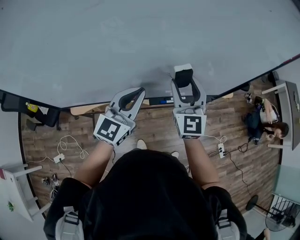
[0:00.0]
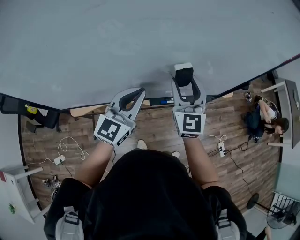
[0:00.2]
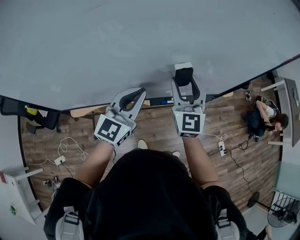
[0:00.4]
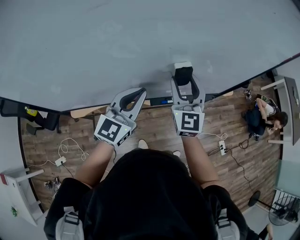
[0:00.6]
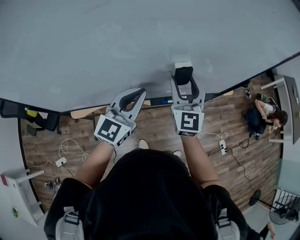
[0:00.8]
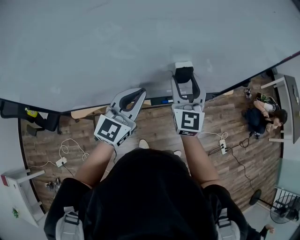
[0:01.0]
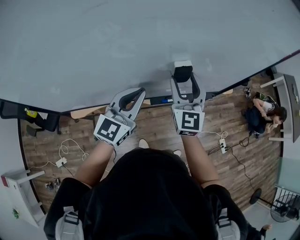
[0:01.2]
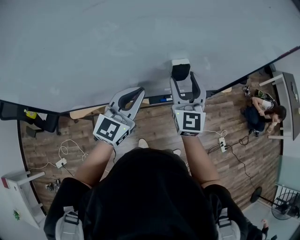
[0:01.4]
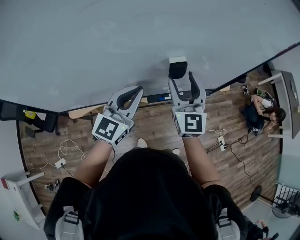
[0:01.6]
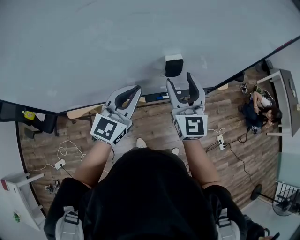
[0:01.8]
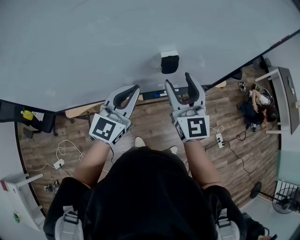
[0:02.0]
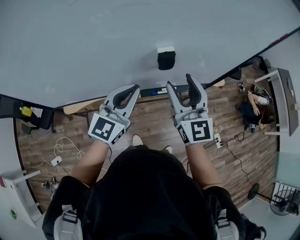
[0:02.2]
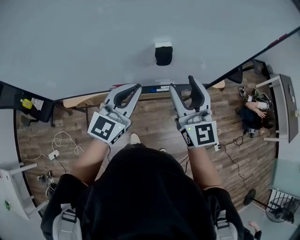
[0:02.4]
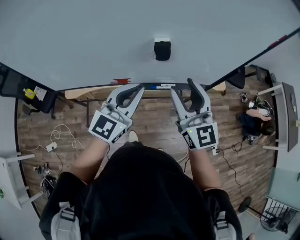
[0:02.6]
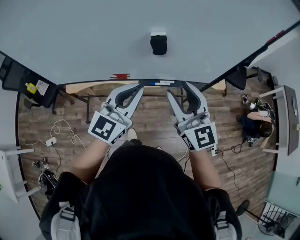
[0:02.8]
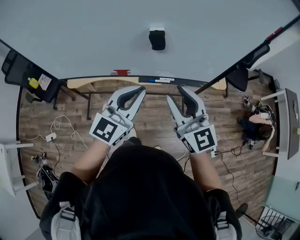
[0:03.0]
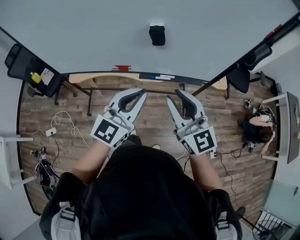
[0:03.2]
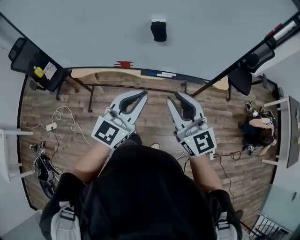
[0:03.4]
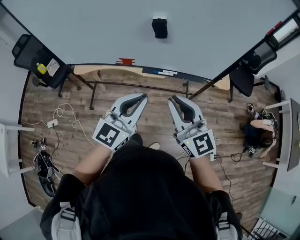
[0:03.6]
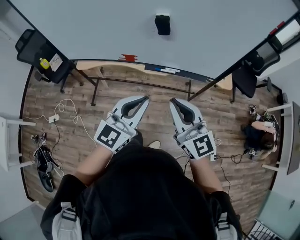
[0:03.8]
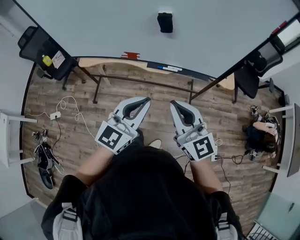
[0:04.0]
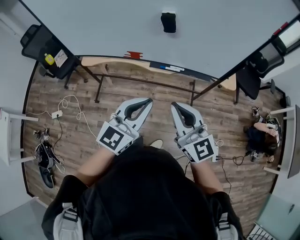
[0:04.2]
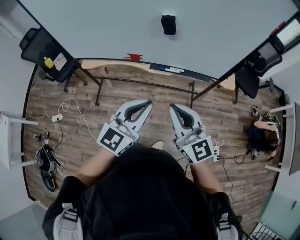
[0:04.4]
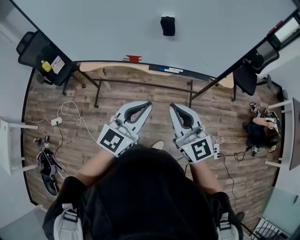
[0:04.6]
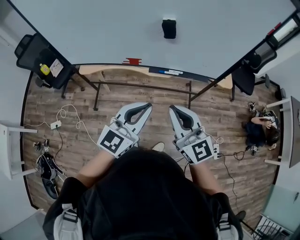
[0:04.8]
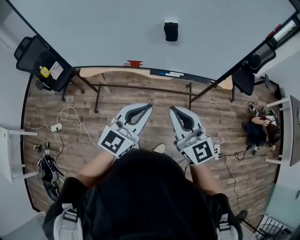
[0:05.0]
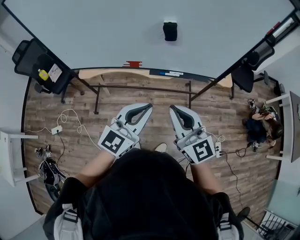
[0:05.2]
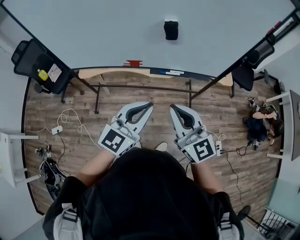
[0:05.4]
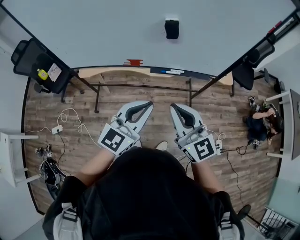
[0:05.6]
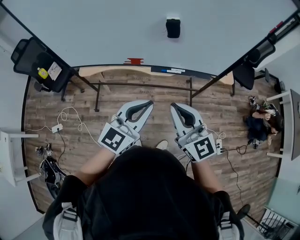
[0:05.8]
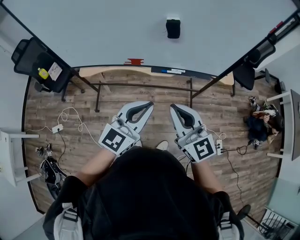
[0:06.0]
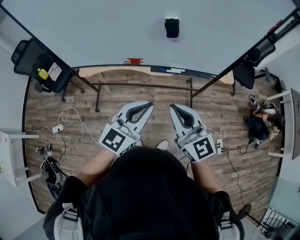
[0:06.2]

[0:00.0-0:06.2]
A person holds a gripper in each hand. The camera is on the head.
0:00.0 to 0:01.6: The grippers stay close to where they were, moving slightly.
0:01.6 to 0:03.2: Both grippers move backward and to the right, roughly 25 cm. The right gripper rotates roughly 30 degrees, and closes up.
0:03.2 to 0:04.6: The grippers both shift backward by about 10 cm. The right gripper closes up.
0:04.6 to 0:06.2: The grippers make only small movements.

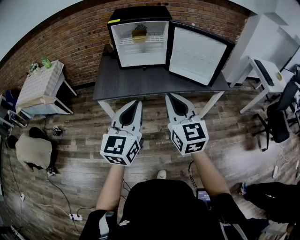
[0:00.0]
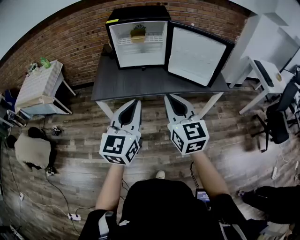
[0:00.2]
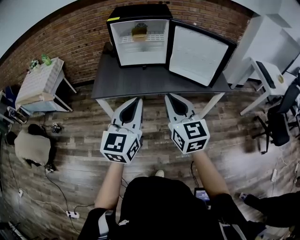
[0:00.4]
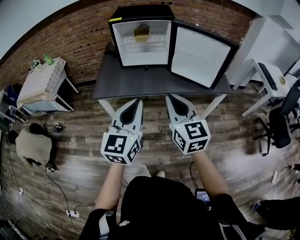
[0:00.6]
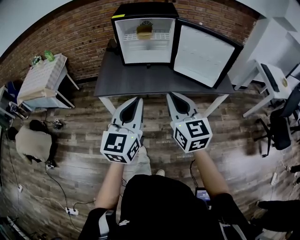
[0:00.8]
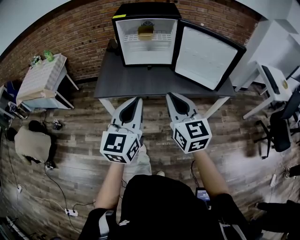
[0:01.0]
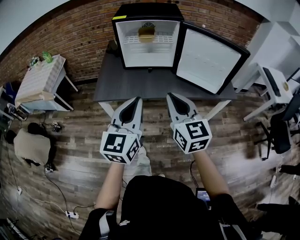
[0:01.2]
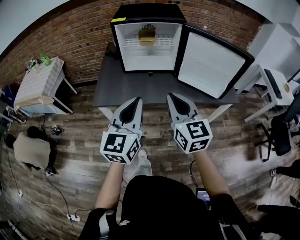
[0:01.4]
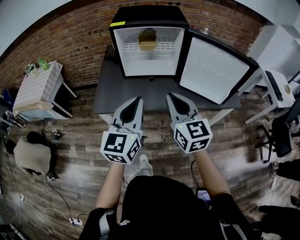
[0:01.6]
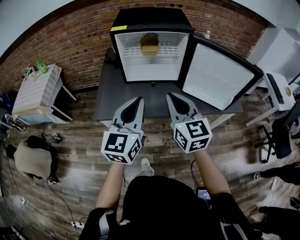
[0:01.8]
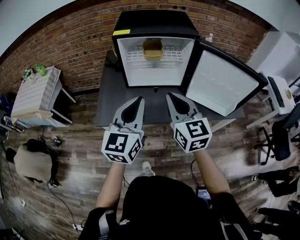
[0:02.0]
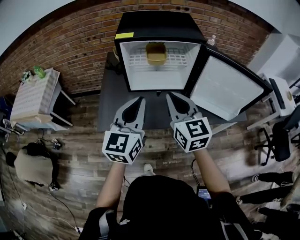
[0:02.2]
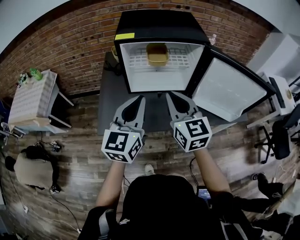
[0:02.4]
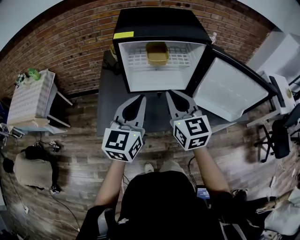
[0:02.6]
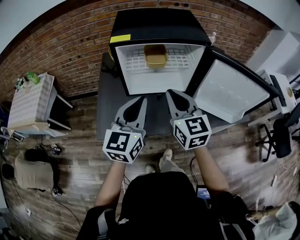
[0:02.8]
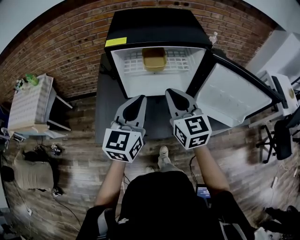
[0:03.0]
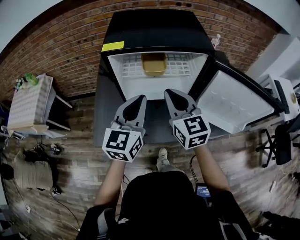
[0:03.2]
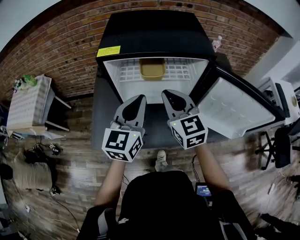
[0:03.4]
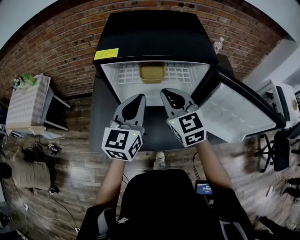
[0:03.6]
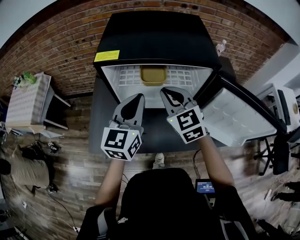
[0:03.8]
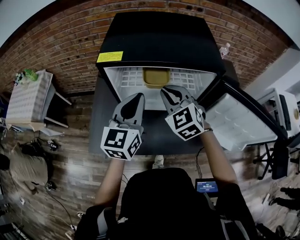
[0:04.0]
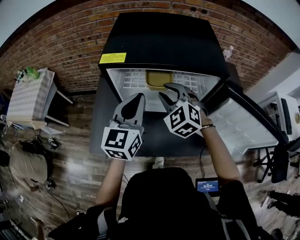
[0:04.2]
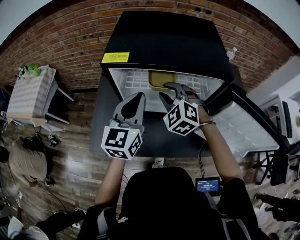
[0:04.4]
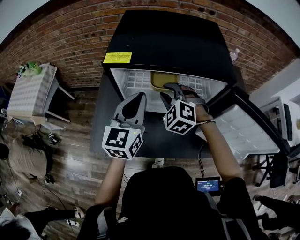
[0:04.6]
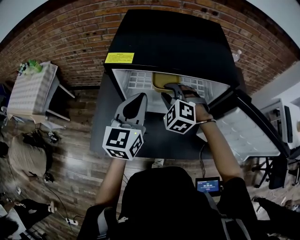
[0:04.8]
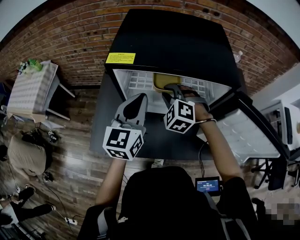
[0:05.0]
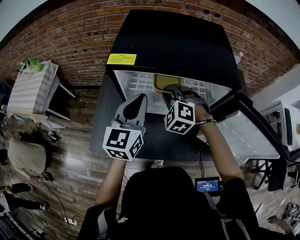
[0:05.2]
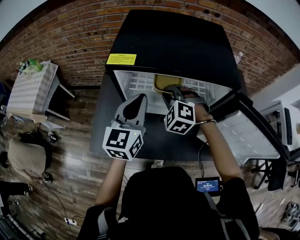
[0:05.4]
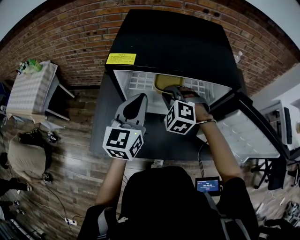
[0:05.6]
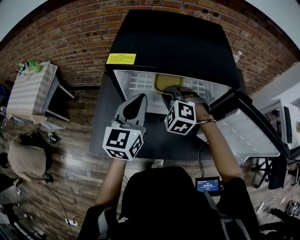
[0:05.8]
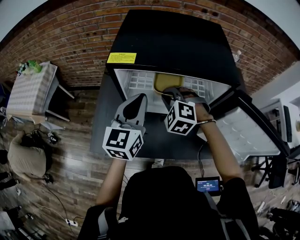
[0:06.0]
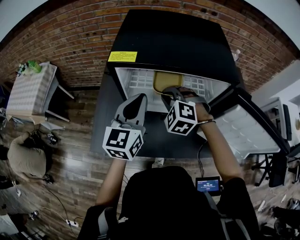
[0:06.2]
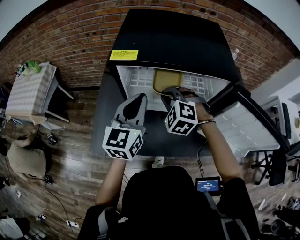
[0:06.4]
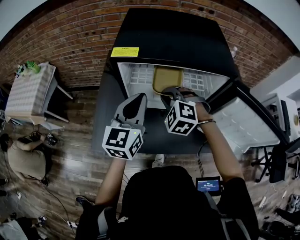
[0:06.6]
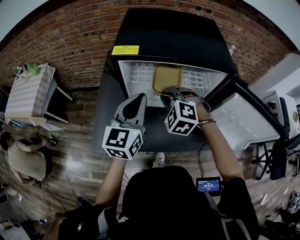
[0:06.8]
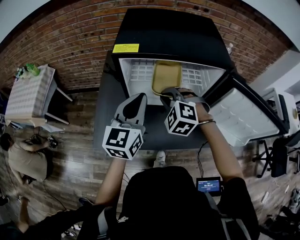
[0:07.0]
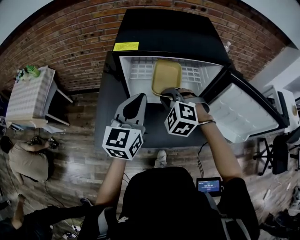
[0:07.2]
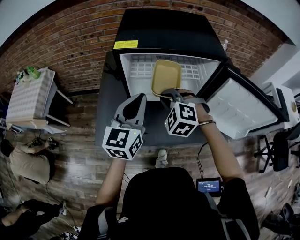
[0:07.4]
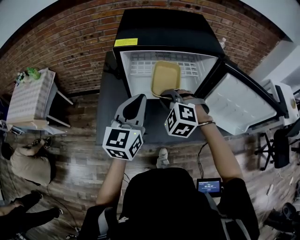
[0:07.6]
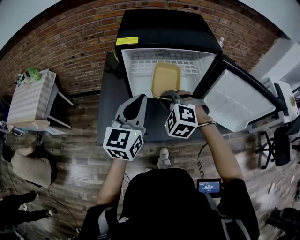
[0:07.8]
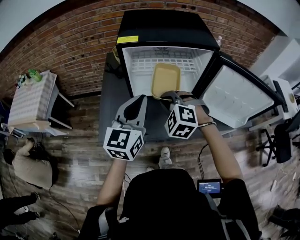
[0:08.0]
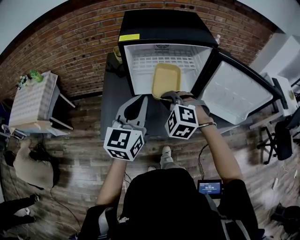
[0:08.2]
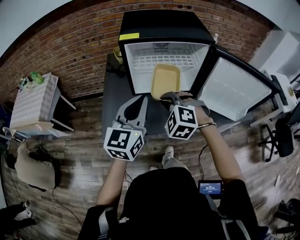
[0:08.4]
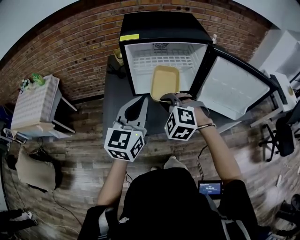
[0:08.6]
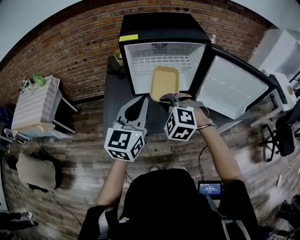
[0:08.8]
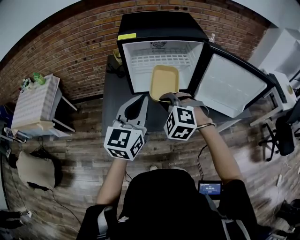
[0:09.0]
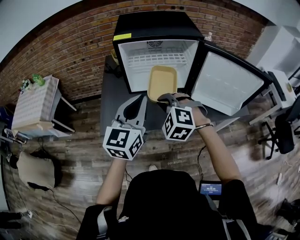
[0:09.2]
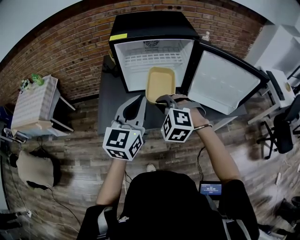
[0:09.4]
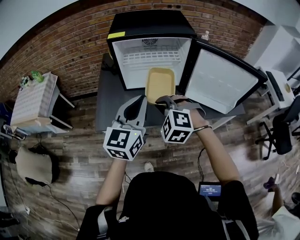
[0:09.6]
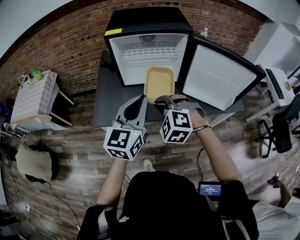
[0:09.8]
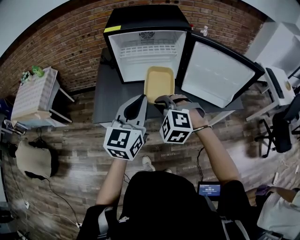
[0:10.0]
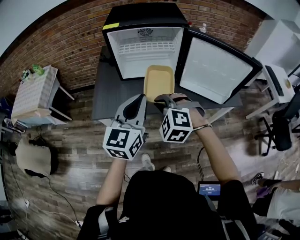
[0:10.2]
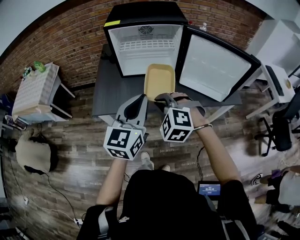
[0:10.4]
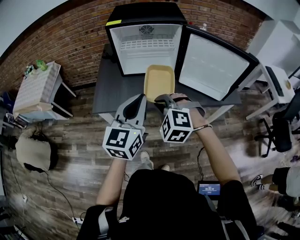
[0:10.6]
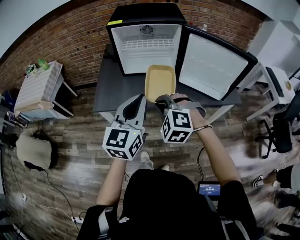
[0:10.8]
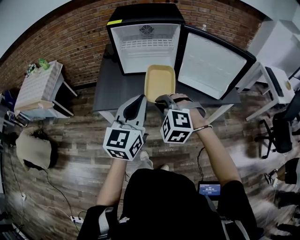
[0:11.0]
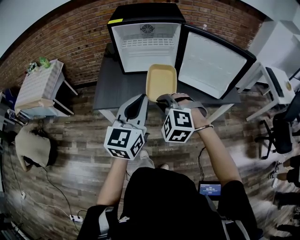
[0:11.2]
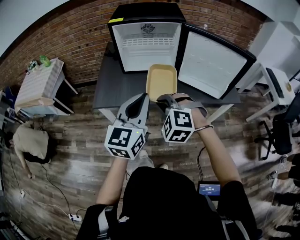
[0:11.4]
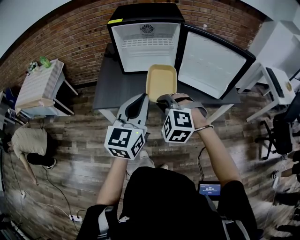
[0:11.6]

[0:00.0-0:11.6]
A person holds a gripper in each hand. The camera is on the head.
0:00.0 to 0:01.4: Both grippers move forward, approximately 15 cm.
0:01.4 to 0:02.8: The grippers both shift forward by some 25 cm.
0:02.8 to 0:04.4: The right gripper moves forward and downward, some 20 cm, rolls counterclockwise, seen from behind, by roughly 50 degrees, and opens. Meanwhile the left gripper goes approximately 20 cm forward.
0:04.4 to 0:05.8: The grippers move only a little.
0:05.8 to 0:07.2: The two grippers go roughly 10 cm backward.
0:07.2 to 0:08.8: Both grippers travel together backward, about 15 cm.
0:08.8 to 0:10.2: Both grippers move backward and to the right, about 15 cm.
0:10.2 to 0:11.6: Both grippers move backward, about 10 cm.

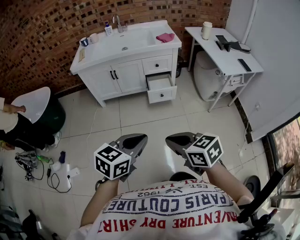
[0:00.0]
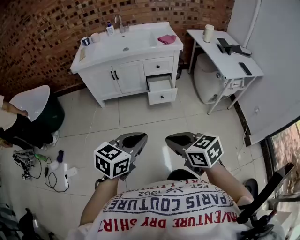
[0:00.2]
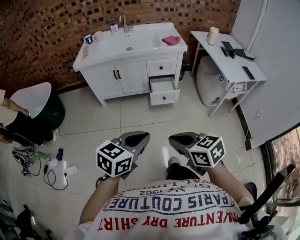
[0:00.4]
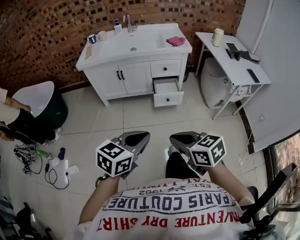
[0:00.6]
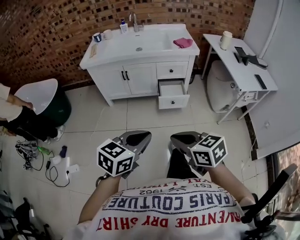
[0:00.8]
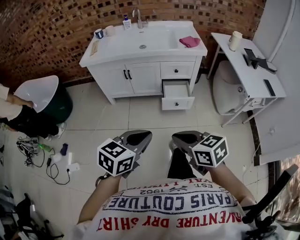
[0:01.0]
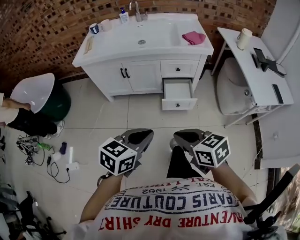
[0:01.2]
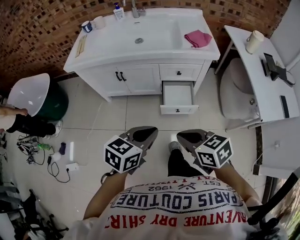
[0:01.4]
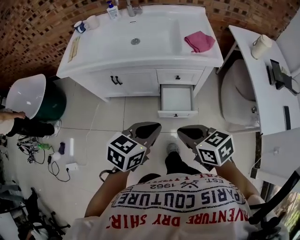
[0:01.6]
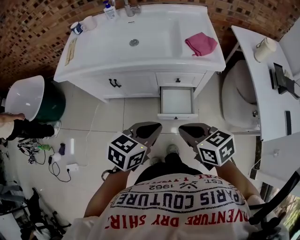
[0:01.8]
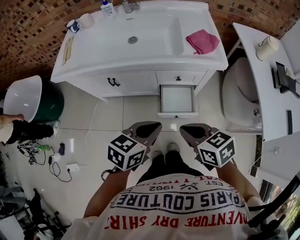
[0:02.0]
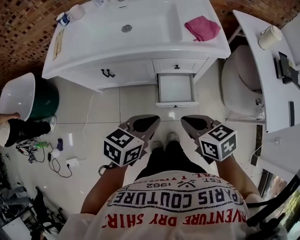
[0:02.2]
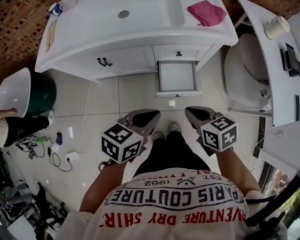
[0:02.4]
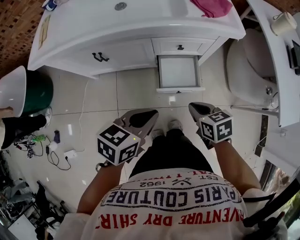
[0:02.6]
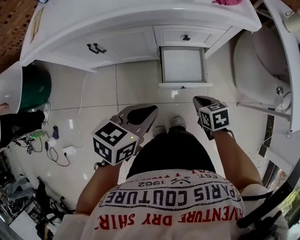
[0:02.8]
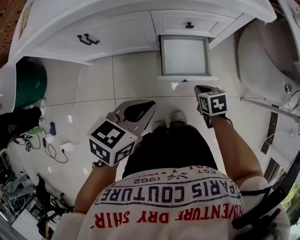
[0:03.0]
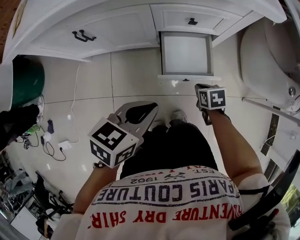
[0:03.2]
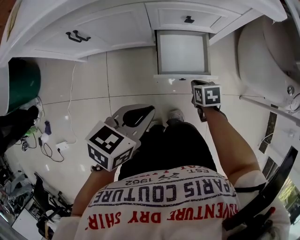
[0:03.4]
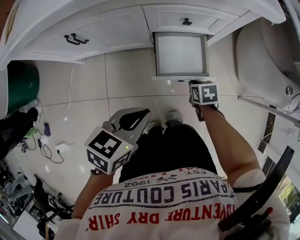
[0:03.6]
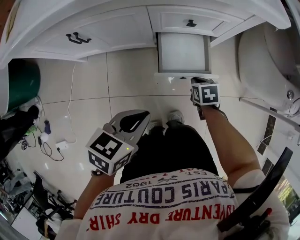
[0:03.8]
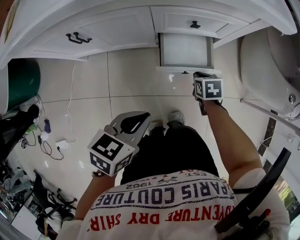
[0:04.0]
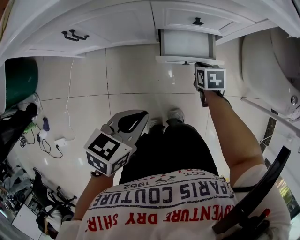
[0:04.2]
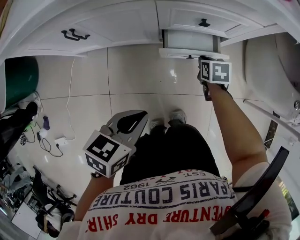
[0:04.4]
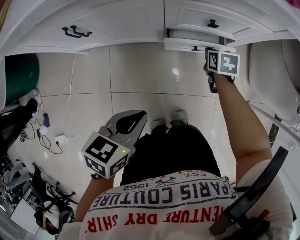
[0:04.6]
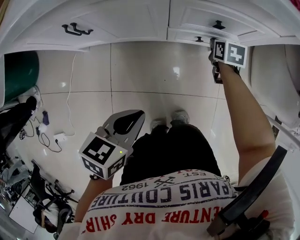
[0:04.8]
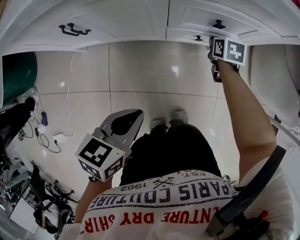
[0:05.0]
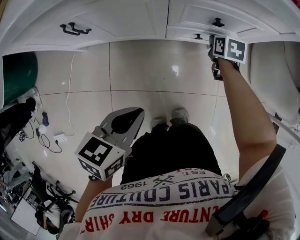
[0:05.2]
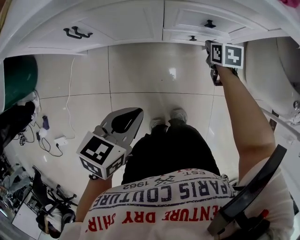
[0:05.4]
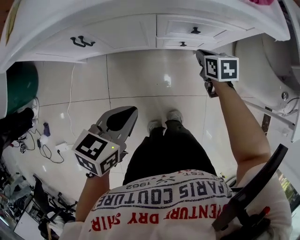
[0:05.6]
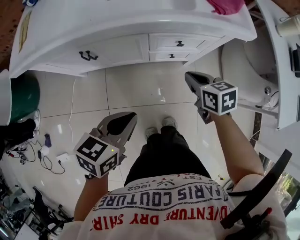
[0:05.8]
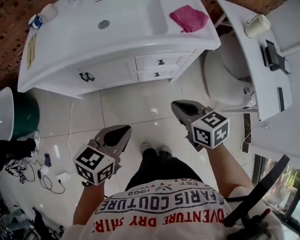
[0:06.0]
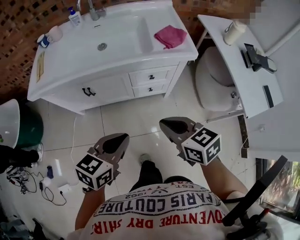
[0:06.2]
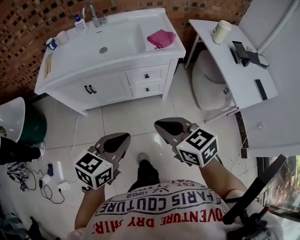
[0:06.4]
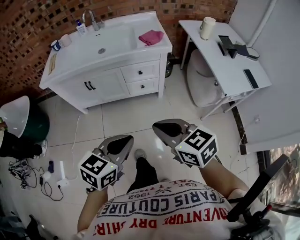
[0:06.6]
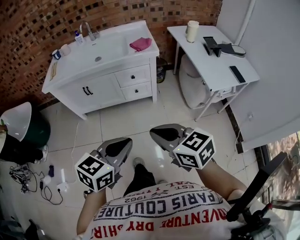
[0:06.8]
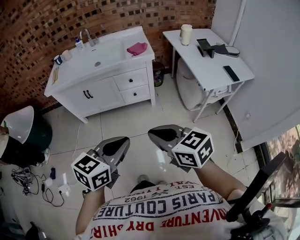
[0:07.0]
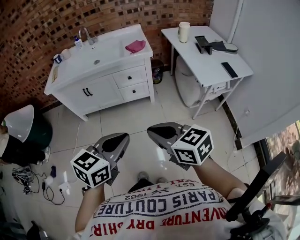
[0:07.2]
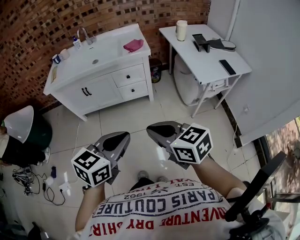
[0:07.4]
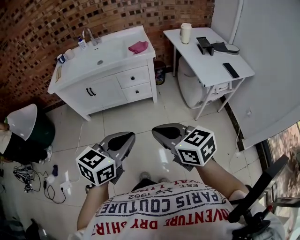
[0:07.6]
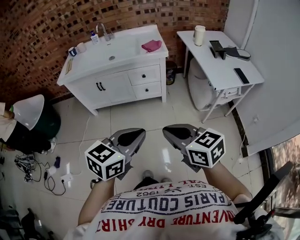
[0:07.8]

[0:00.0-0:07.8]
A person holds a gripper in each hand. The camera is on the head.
0:00.0 to 0:01.6: Both grippers are carried forward, some 50 cm.
0:01.6 to 0:03.2: The right gripper shifts about 50 cm downward, and points its fingers approximately 30 degrees further downward. The left gripper shifts about 25 cm downward.
0:03.2 to 0:04.6: The left gripper goes some 10 cm downward and to the left. Meanwhile the right gripper shifts approximately 20 cm forward.
0:04.6 to 0:06.2: The left gripper is displaced upward by about 35 cm, and turns by approximately 20 degrees; the right gripper moves upward and backward, about 60 cm, and angles its fingers upward, by approximately 30 degrees.
0:06.2 to 0:07.8: Both grippers are carried backward and to the right, about 40 cm.
